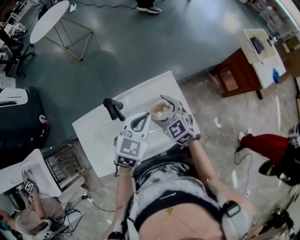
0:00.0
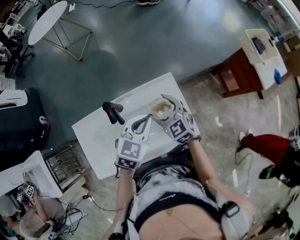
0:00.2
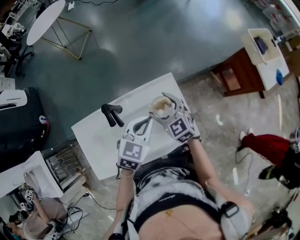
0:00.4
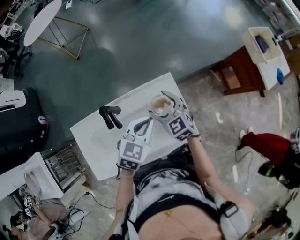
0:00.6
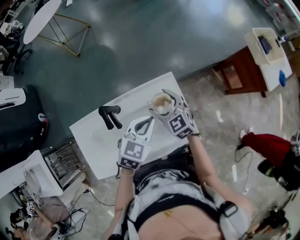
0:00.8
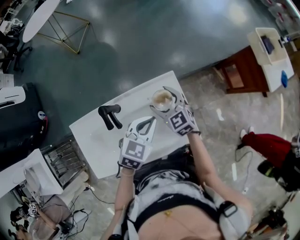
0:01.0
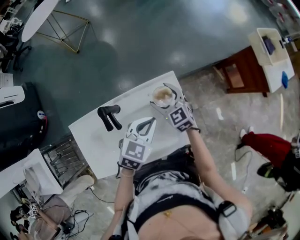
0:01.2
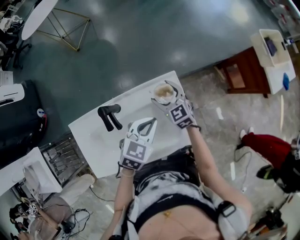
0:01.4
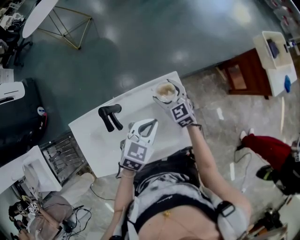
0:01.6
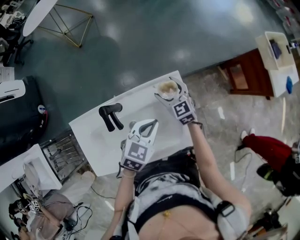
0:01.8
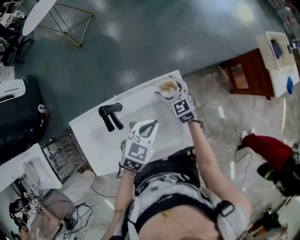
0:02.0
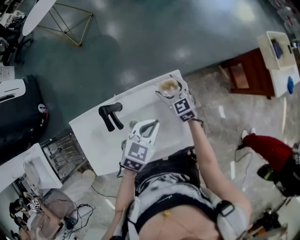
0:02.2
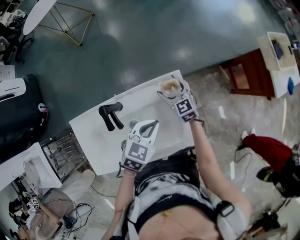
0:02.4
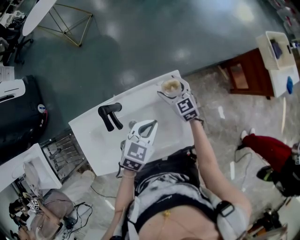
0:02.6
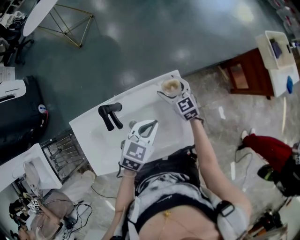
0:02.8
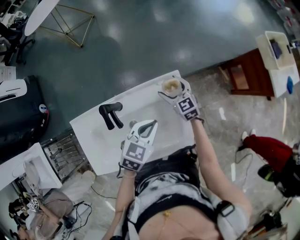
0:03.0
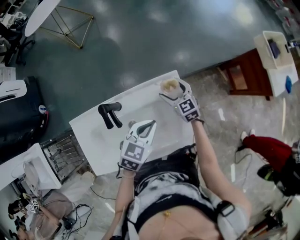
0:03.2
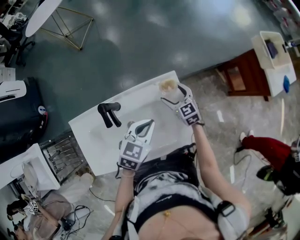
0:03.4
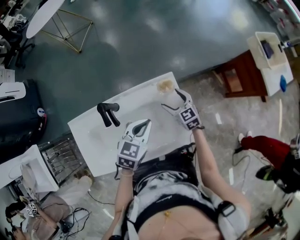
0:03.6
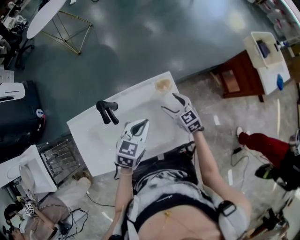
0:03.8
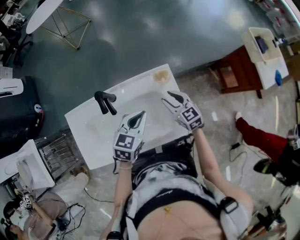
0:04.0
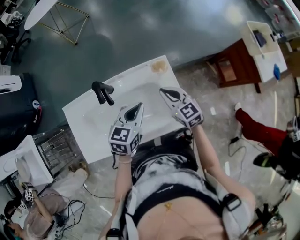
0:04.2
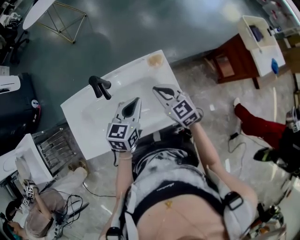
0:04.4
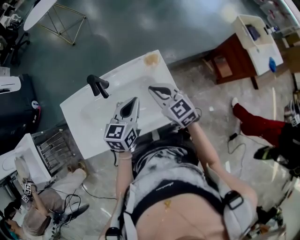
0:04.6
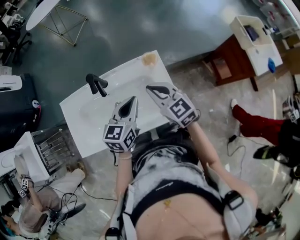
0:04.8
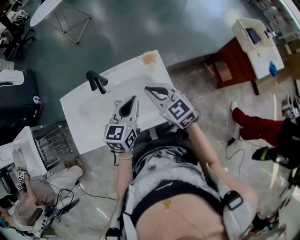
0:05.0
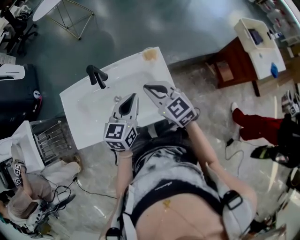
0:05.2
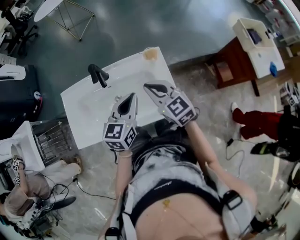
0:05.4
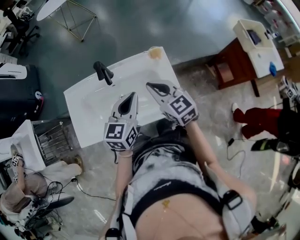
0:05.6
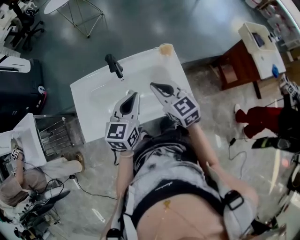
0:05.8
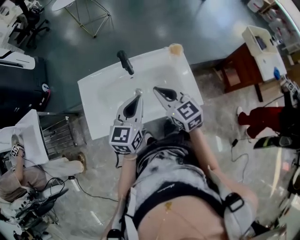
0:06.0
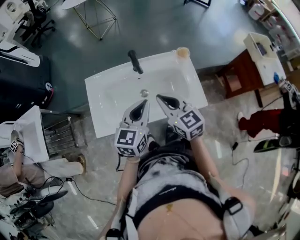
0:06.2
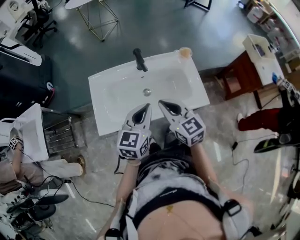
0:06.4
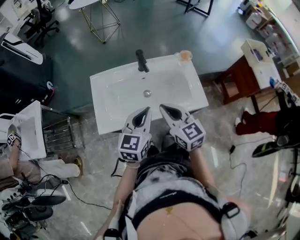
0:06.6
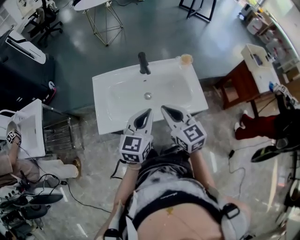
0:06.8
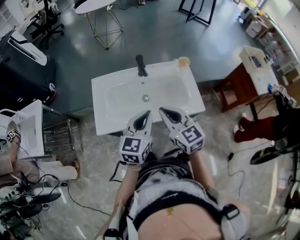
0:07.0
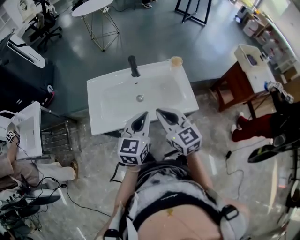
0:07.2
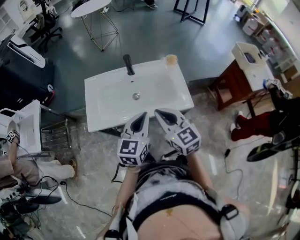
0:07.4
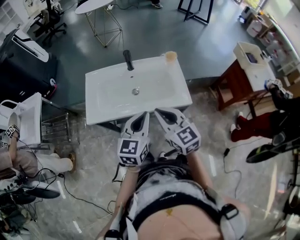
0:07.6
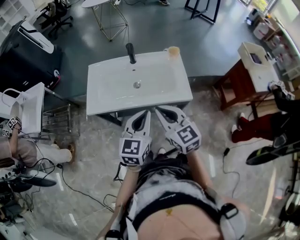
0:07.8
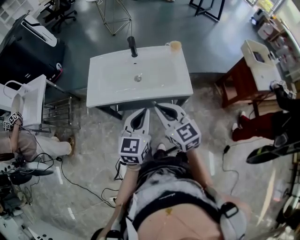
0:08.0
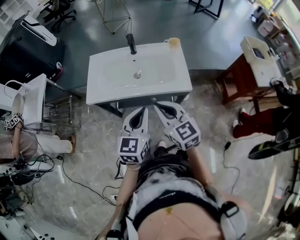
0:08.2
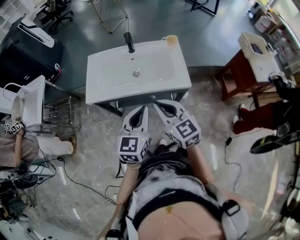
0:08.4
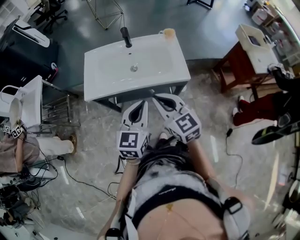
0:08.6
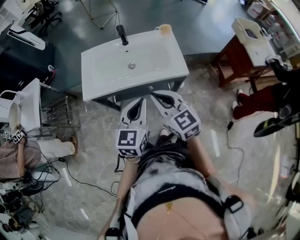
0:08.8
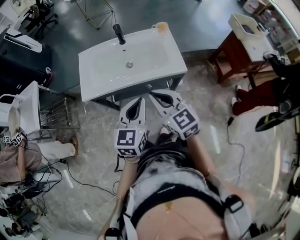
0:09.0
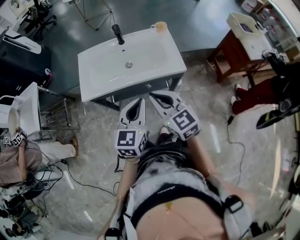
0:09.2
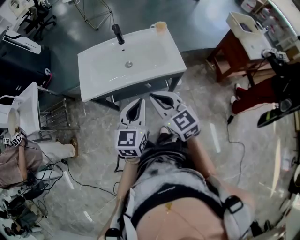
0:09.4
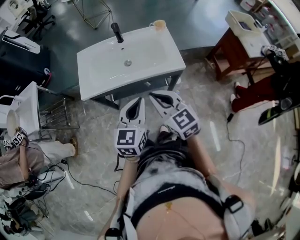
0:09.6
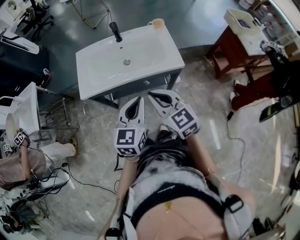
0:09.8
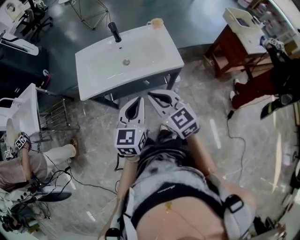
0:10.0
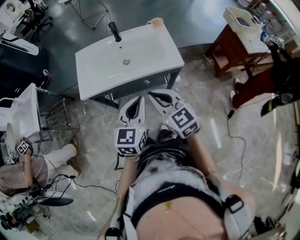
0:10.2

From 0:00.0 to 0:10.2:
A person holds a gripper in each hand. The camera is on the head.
From 0:00.0 to 0:01.4: The right gripper shifts about 15 cm forward and downward. Meanwhile the left gripper heads downward, covering about 5 cm.
From 0:01.4 to 0:03.0: The right gripper changes place by about 5 cm.
From 0:03.0 to 0:04.4: The right gripper shifts approximately 20 cm backward and upward, and closes up. The left gripper moves roughly 5 cm, and changes its angle by about 20 degrees.
From 0:04.4 to 0:05.8: The right gripper is displaced backward, upward and to the left by roughly 10 cm, while the left gripper shifts about 10 cm backward, to the left and upward.
From 0:05.8 to 0:07.2: The right gripper moves backward and to the left, some 20 cm. Meanwhile the left gripper shifts roughly 15 cm backward.
From 0:07.2 to 0:08.8: The grippers both shift backward by some 15 cm.
From 0:08.8 to 0:10.2: The grippers move only a little.

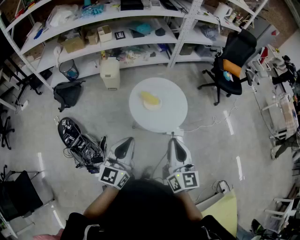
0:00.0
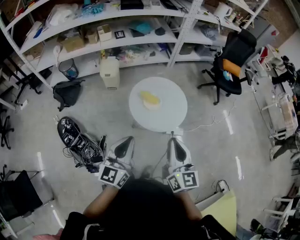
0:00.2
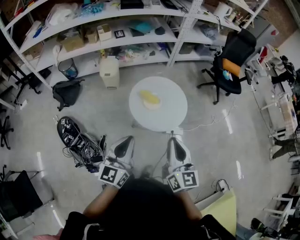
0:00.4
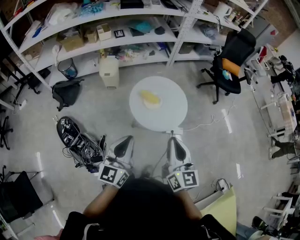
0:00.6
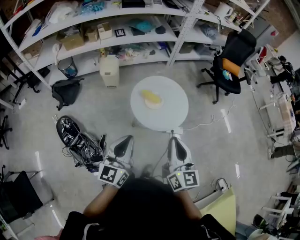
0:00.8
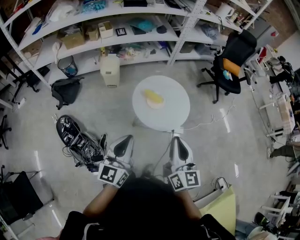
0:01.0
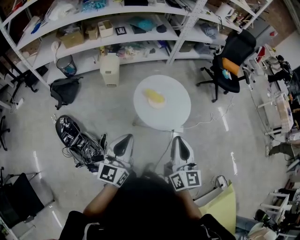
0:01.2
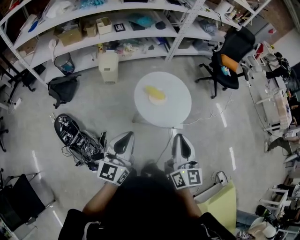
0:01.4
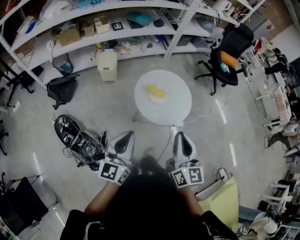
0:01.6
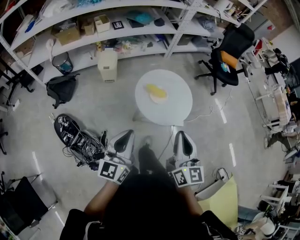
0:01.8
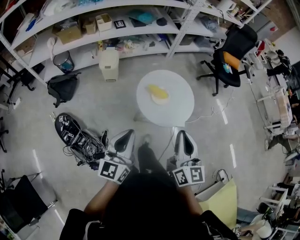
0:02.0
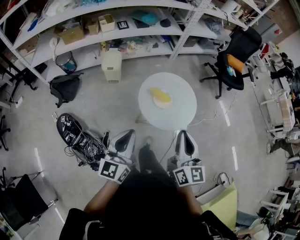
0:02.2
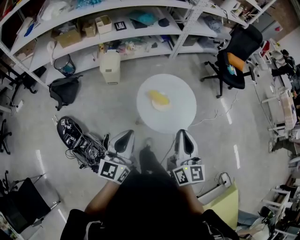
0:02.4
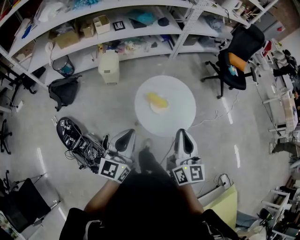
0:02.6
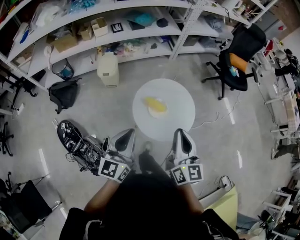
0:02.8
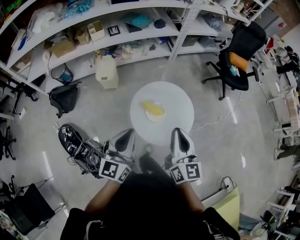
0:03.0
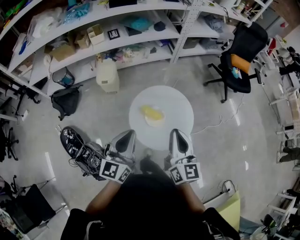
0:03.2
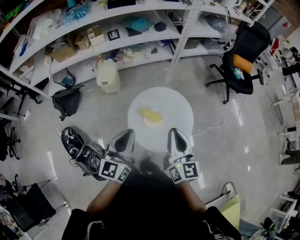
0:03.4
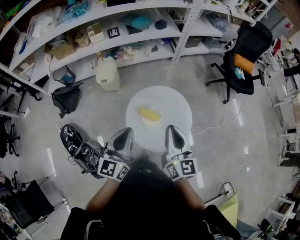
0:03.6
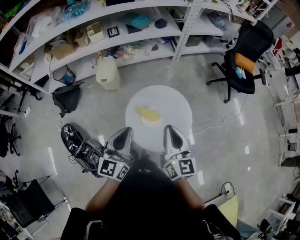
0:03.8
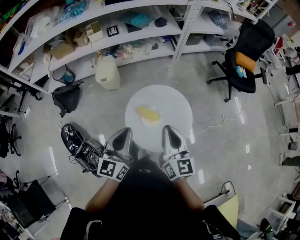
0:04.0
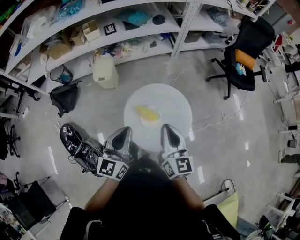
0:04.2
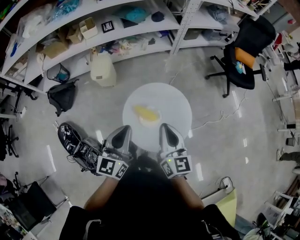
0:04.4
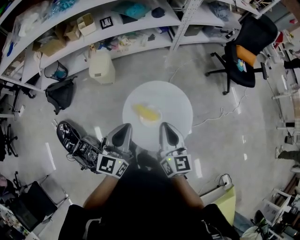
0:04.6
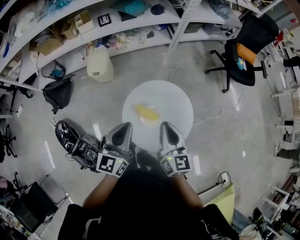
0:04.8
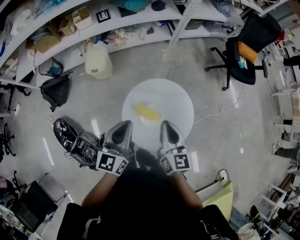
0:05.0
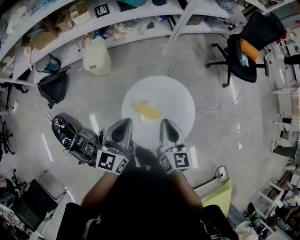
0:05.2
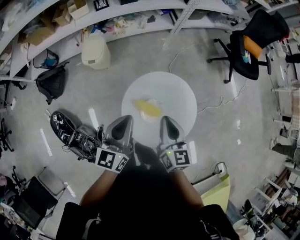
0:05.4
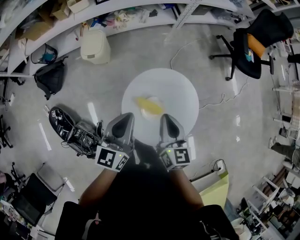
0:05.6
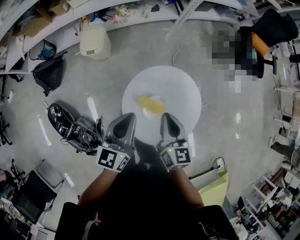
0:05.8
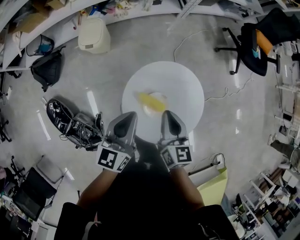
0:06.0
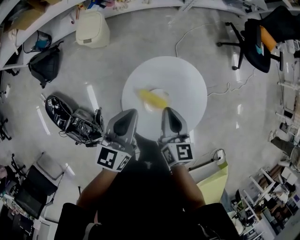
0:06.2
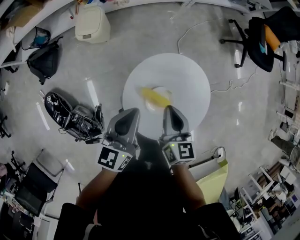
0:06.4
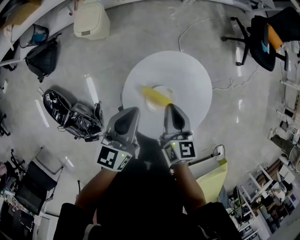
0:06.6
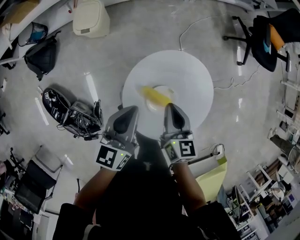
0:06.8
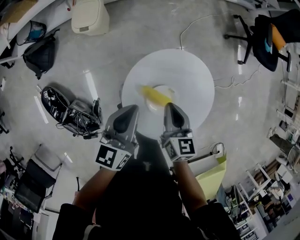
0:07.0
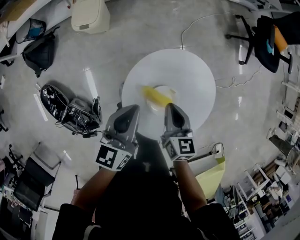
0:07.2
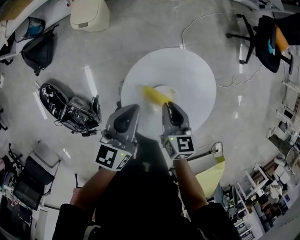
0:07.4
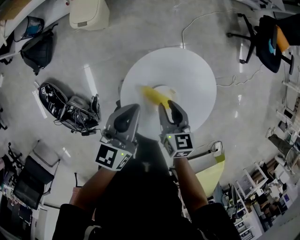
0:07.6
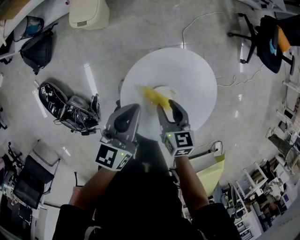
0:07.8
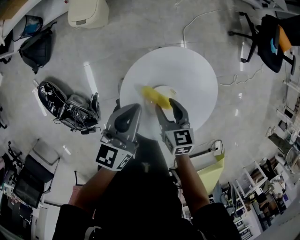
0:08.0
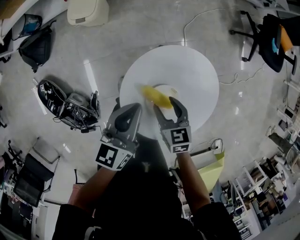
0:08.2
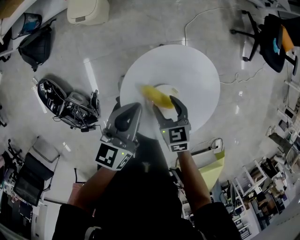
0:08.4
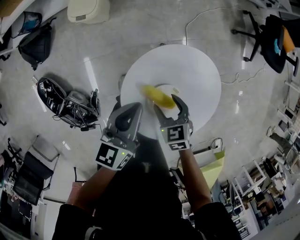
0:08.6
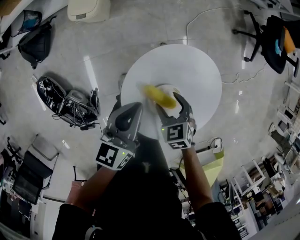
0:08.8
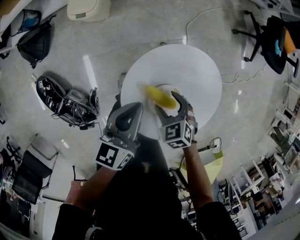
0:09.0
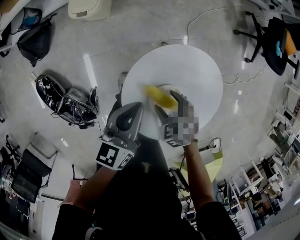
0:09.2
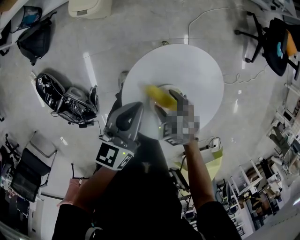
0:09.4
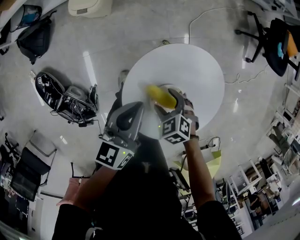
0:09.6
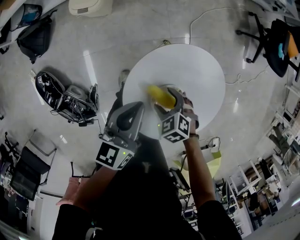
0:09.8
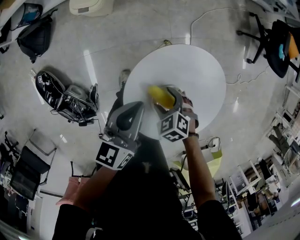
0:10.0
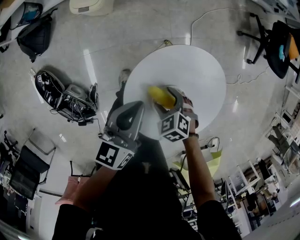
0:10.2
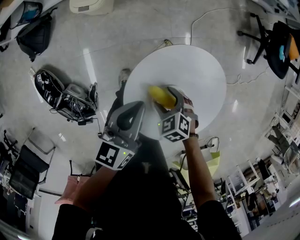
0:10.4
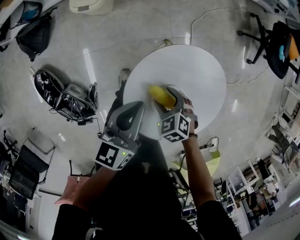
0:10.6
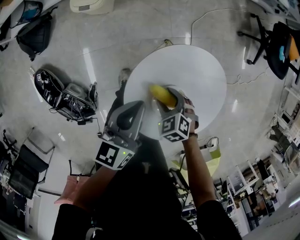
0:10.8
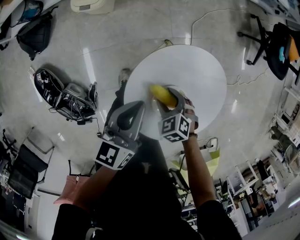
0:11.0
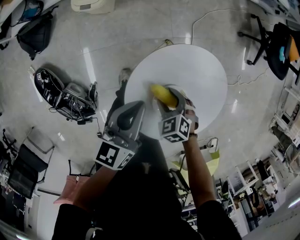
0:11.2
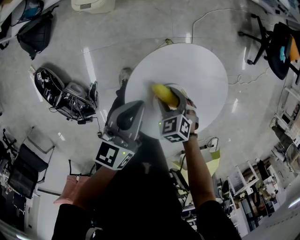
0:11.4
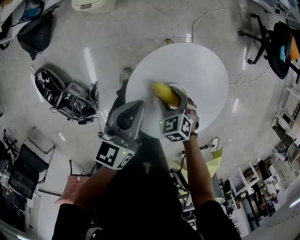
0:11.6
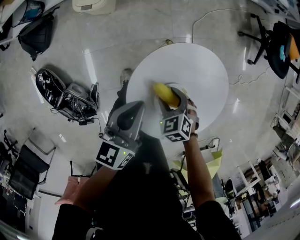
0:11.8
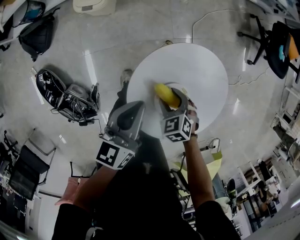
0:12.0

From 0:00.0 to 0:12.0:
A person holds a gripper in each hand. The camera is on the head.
From 0:00.0 to 0:01.6: The two grippers go roughly 10 cm to the left.
From 0:01.6 to 0:03.0: The grippers both shift forward by roughly 20 cm.
From 0:03.0 to 0:04.4: The left gripper goes about 10 cm forward, while the right gripper travels forward and downward by approximately 10 cm.
From 0:04.4 to 0:06.0: Both grippers travel together downward and forward, approximately 15 cm.
From 0:06.0 to 0:07.6: The right gripper travels downward by approximately 15 cm. Meanwhile the left gripper travels downward by some 10 cm.
From 0:07.6 to 0:09.0: The right gripper travels downward by approximately 5 cm, changes its angle by some 40 degrees, and opens.
From 0:09.0 to 0:12.0: The grippers stay close to where they were, moving slightly.

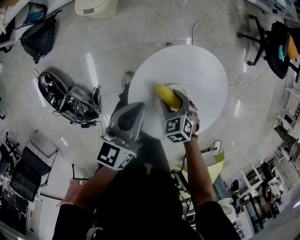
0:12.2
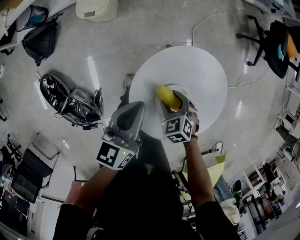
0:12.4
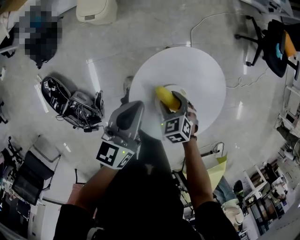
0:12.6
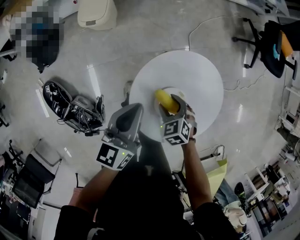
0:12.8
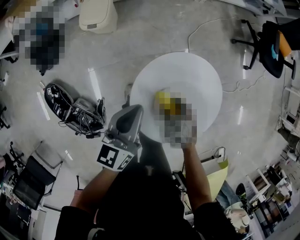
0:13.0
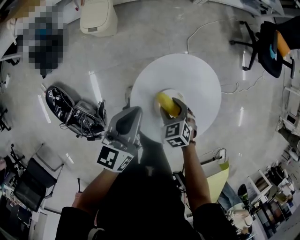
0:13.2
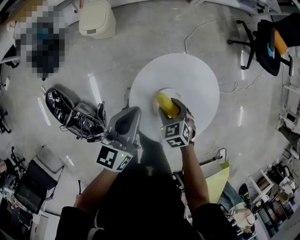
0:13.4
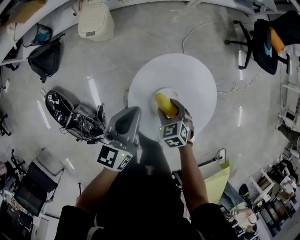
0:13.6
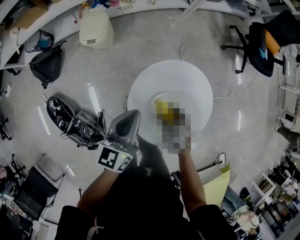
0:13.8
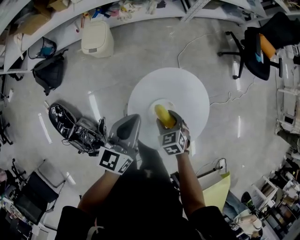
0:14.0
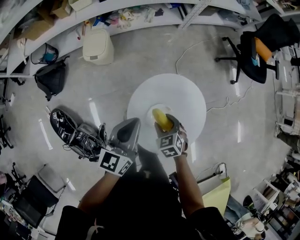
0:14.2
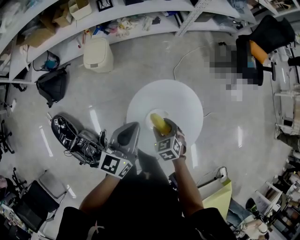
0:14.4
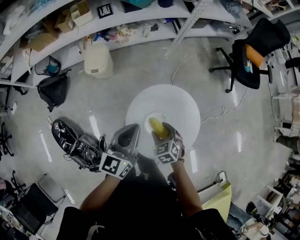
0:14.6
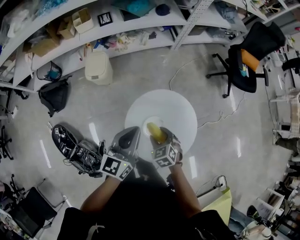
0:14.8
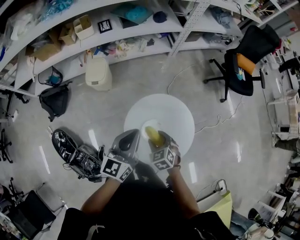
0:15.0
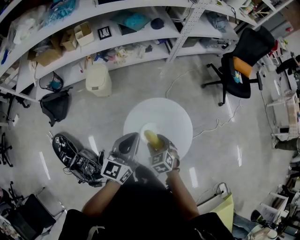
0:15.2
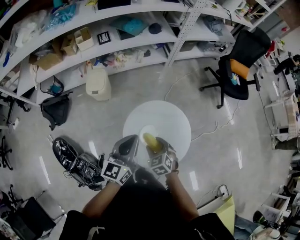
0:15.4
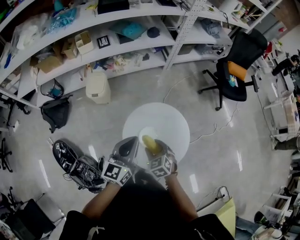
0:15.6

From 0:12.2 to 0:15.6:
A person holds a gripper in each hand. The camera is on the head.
From 0:12.2 to 0:13.8: The two grippers go some 5 cm upward.
From 0:13.8 to 0:15.6: Both grippers travel together upward and backward, roughly 15 cm.
